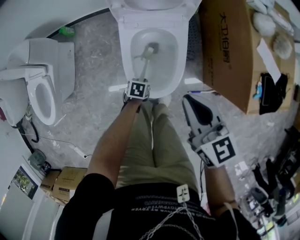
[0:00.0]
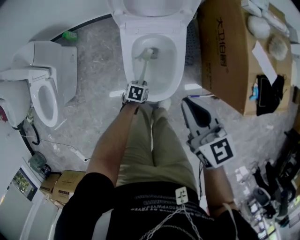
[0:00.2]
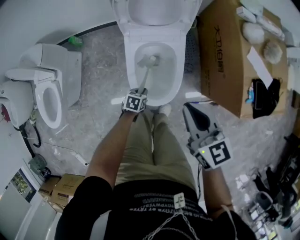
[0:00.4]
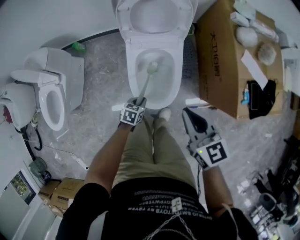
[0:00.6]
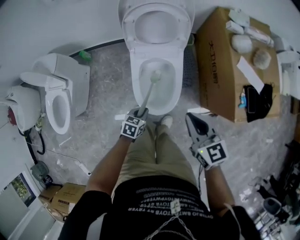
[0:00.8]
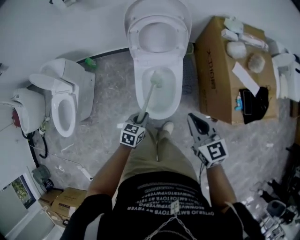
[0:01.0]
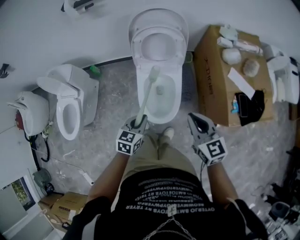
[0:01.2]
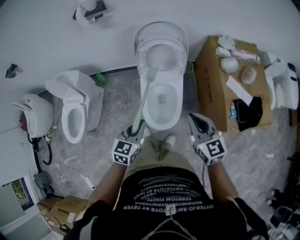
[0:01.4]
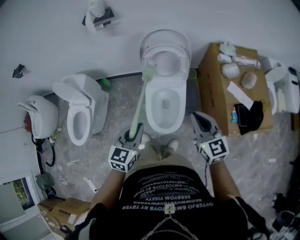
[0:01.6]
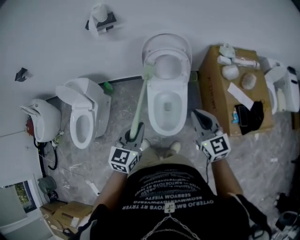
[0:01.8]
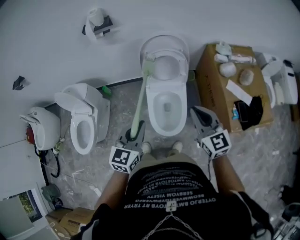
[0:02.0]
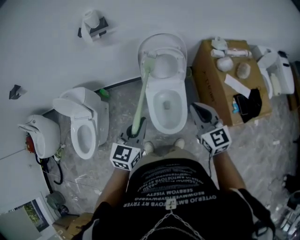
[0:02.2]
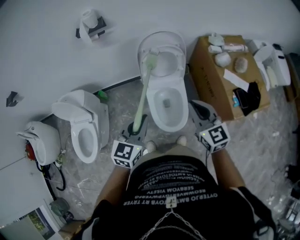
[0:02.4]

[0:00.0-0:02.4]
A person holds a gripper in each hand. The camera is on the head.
0:00.0 to 0:01.2: The left gripper moves upward, roughly 40 cm, and tilts its fingers roughly 30 degrees upward. Meanwhile the right gripper is displaced upward by some 15 cm.
0:01.2 to 0:02.4: The right gripper shifts some 15 cm upward and to the left. The left gripper moves upward and to the left, about 25 cm, and rotates about 20 degrees.

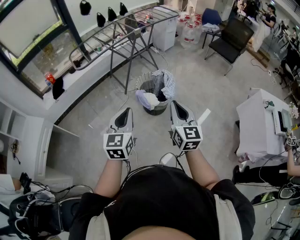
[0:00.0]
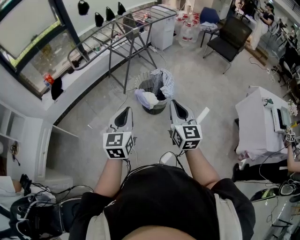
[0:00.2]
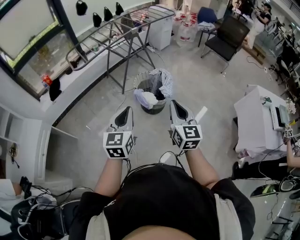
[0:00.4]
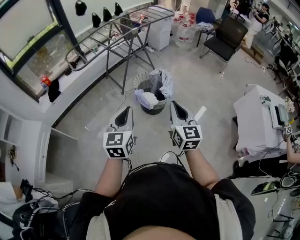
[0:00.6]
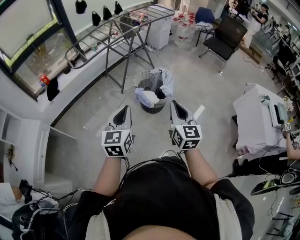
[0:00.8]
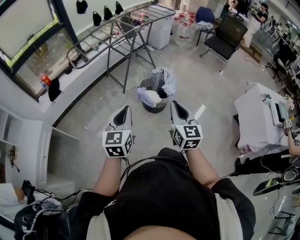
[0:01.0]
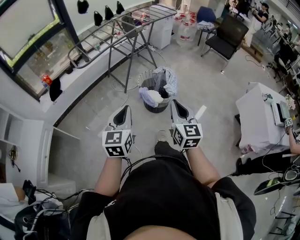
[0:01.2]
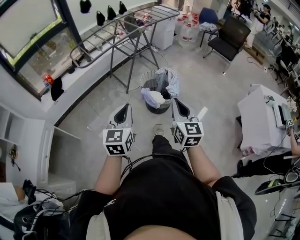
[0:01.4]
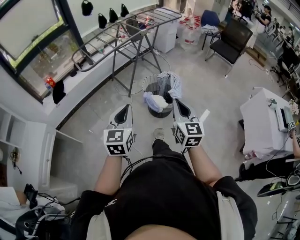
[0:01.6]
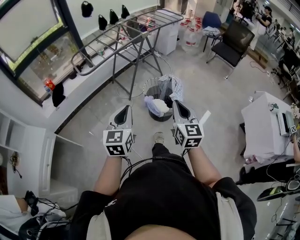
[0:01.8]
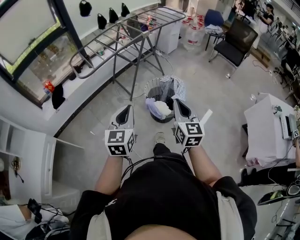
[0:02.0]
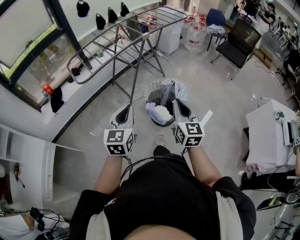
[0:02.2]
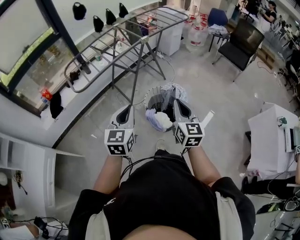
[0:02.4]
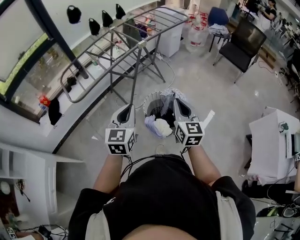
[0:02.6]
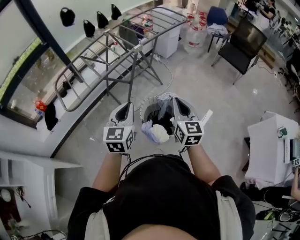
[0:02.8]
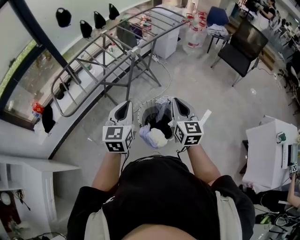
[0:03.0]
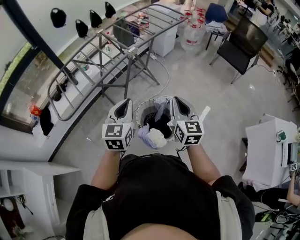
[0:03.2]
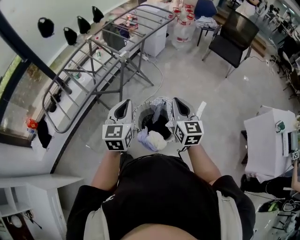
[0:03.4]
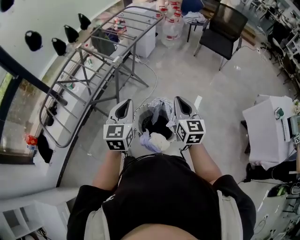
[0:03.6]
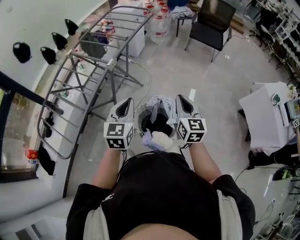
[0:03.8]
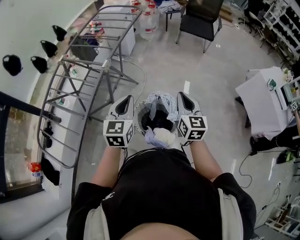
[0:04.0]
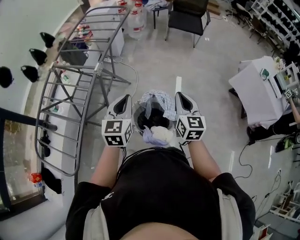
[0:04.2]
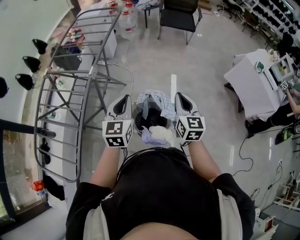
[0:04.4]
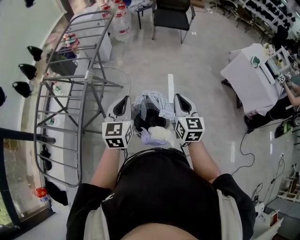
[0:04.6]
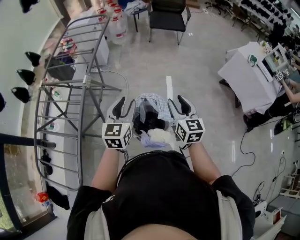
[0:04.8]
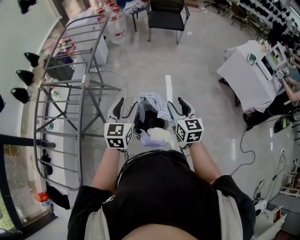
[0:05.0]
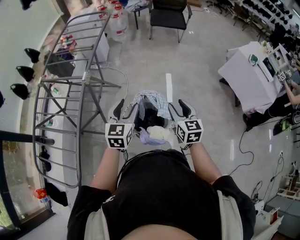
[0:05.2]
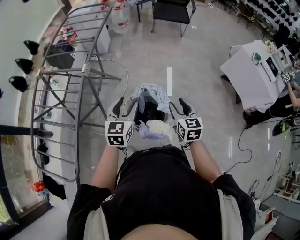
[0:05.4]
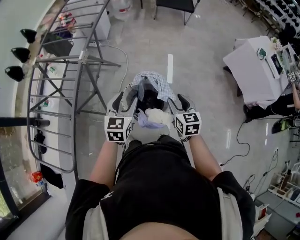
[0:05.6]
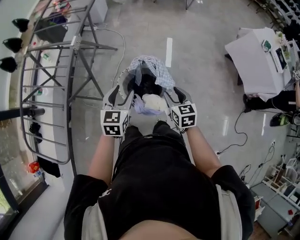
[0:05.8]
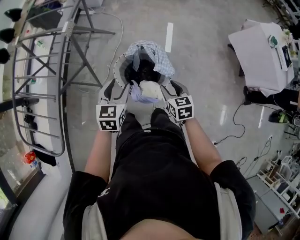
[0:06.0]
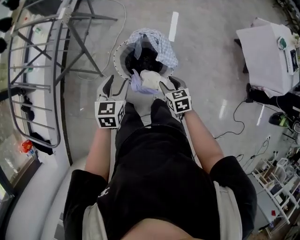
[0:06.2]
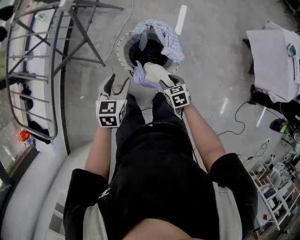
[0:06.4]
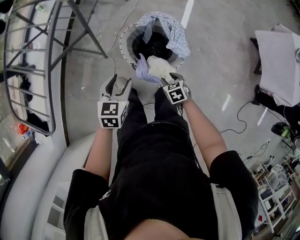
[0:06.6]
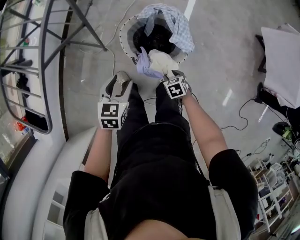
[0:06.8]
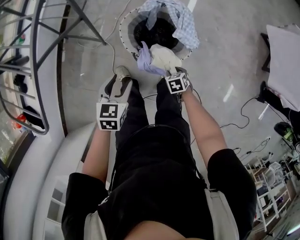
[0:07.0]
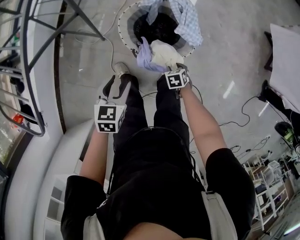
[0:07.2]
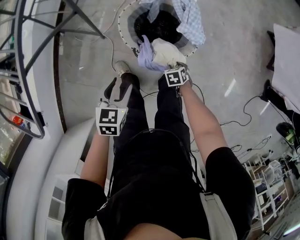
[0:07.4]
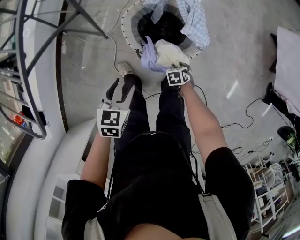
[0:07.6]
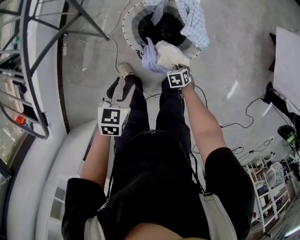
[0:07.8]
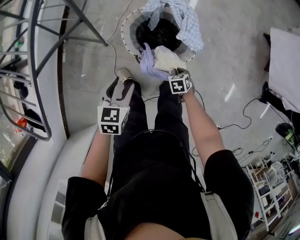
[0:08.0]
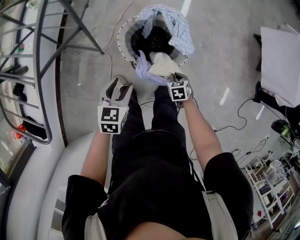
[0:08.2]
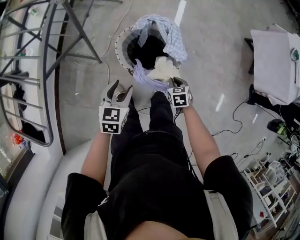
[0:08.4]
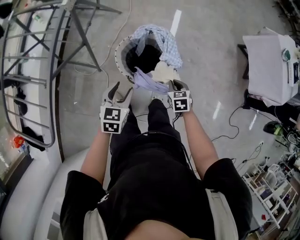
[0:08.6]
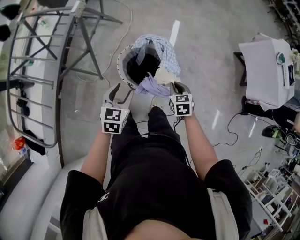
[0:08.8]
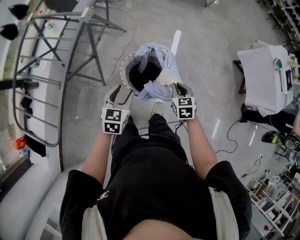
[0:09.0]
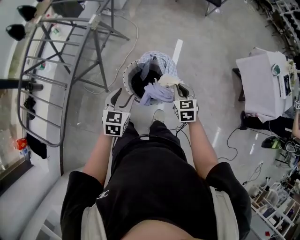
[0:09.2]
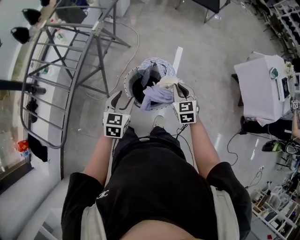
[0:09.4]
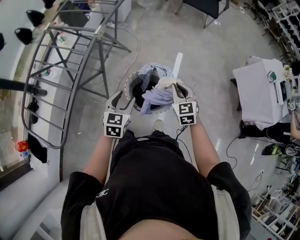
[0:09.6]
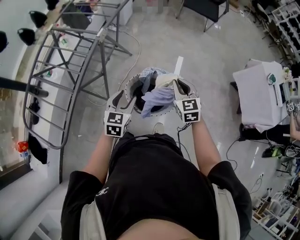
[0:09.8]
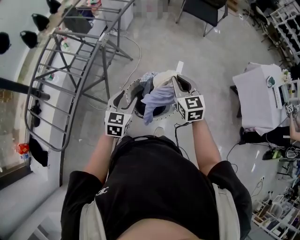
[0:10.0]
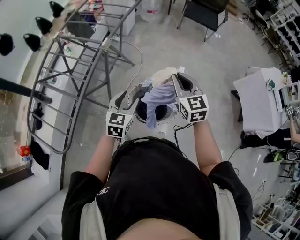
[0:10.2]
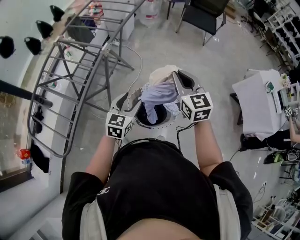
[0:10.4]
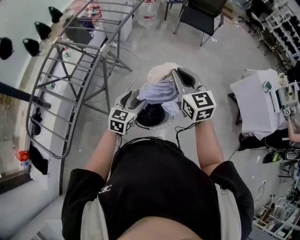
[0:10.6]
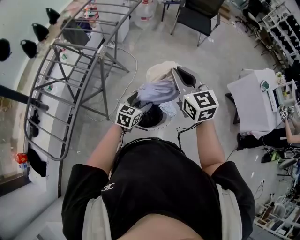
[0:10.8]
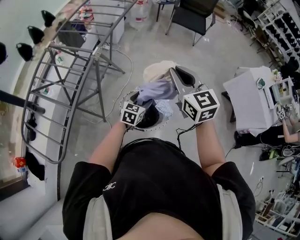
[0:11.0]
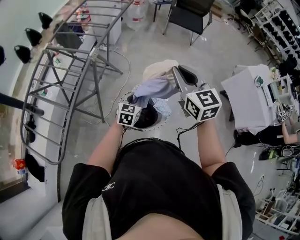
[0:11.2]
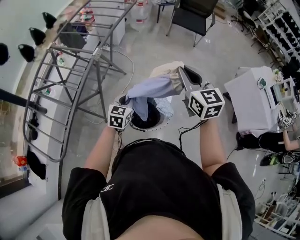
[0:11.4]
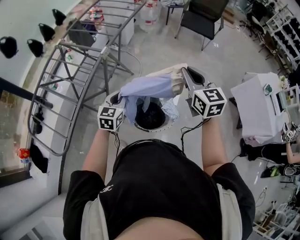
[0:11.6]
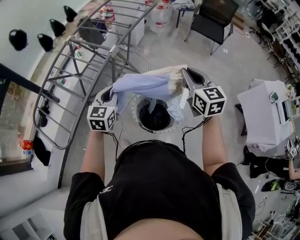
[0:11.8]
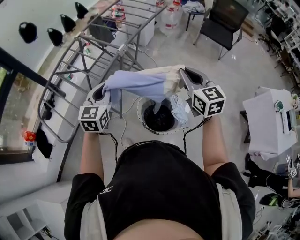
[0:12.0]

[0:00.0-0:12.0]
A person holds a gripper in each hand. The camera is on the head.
0:00.0 to 0:01.6: Both grippers travel together to the left, some 10 cm.
0:01.6 to 0:03.0: The two grippers travel together, forward, about 50 cm.
0:03.0 to 0:04.4: The right gripper moves roughly 5 cm, and turns by approximately 40 degrees, while the left gripper ends up about 15 cm from where it was, and changes its angle by approximately 40 degrees.
0:04.4 to 0:06.0: Both grippers travel together downward, approximately 20 cm. The left gripper changes its angle by approximately 20 degrees, and opens its fingers; the right gripper points its fingers roughly 30 degrees further downward, and opens its fingers.
0:06.0 to 0:07.6: The left gripper is displaced downward by approximately 20 cm, and changes its angle by about 20 degrees. The right gripper moves downward, roughly 40 cm, and points its fingers roughly 40 degrees further downward.
0:07.6 to 0:09.0: The left gripper goes some 15 cm upward. Meanwhile the right gripper shifts some 35 cm upward, tips its fingers upward by approximately 40 degrees, and closes its fingers.
0:09.0 to 0:10.4: The right gripper travels upward by about 30 cm, and points its fingers some 30 degrees further upward; the left gripper moves upward and forward, about 15 cm.
0:10.4 to 0:12.0: The left gripper heads to the left and upward, covering approximately 15 cm, rotates some 20 degrees, and closes up.

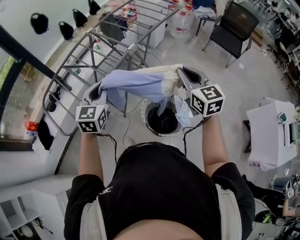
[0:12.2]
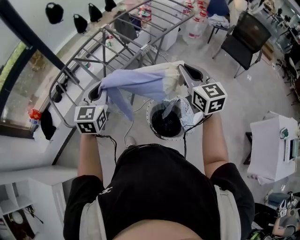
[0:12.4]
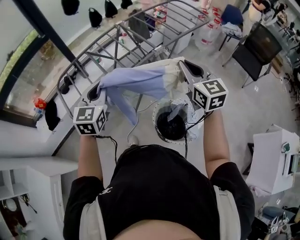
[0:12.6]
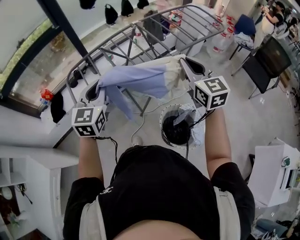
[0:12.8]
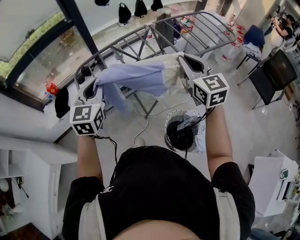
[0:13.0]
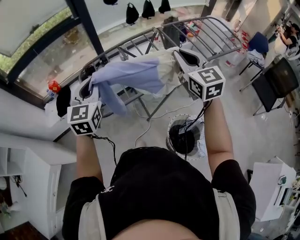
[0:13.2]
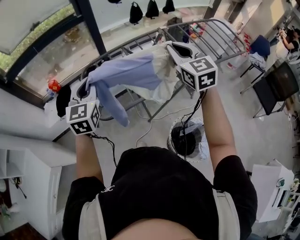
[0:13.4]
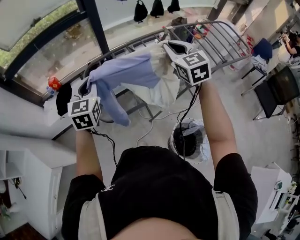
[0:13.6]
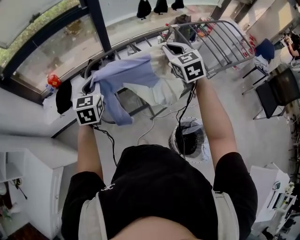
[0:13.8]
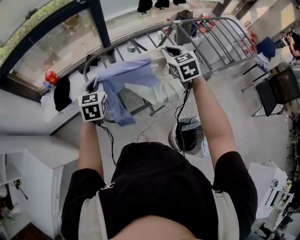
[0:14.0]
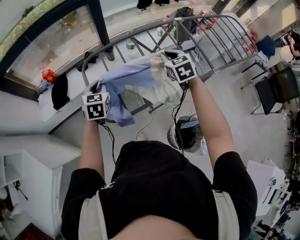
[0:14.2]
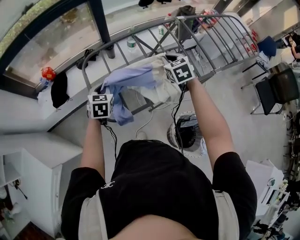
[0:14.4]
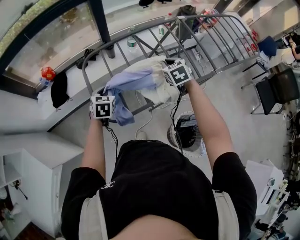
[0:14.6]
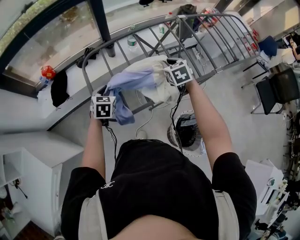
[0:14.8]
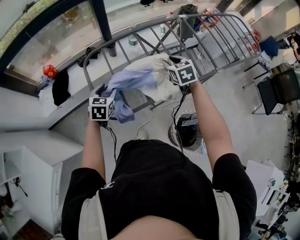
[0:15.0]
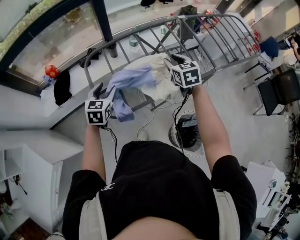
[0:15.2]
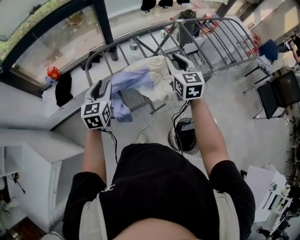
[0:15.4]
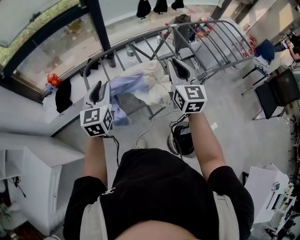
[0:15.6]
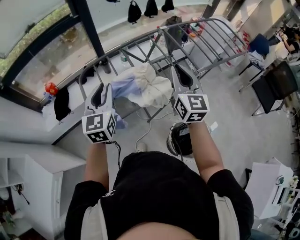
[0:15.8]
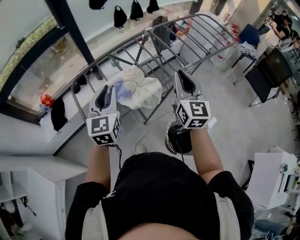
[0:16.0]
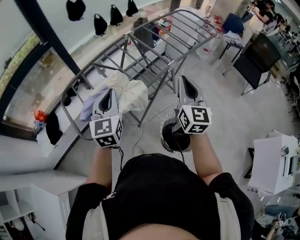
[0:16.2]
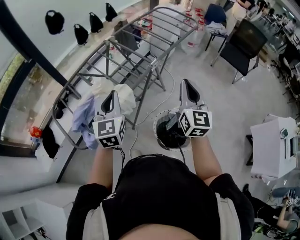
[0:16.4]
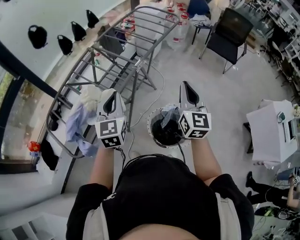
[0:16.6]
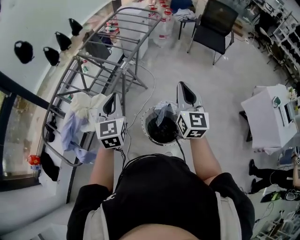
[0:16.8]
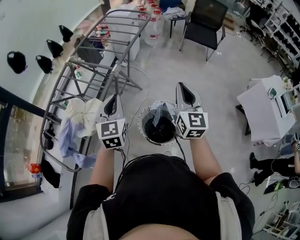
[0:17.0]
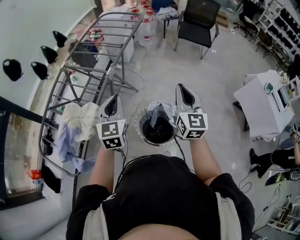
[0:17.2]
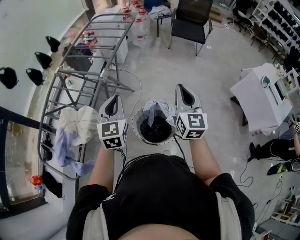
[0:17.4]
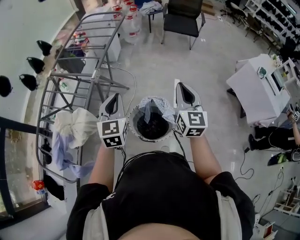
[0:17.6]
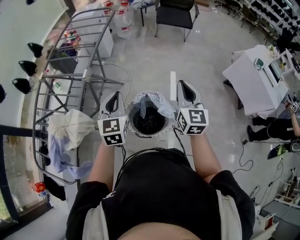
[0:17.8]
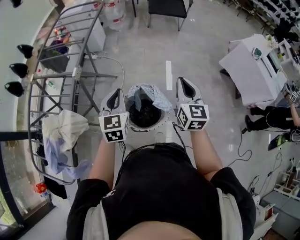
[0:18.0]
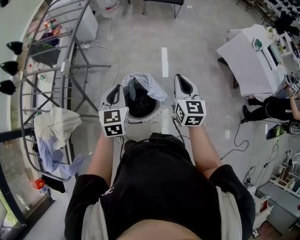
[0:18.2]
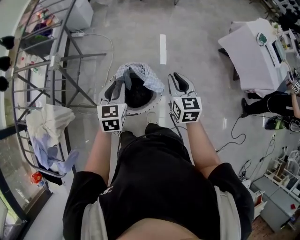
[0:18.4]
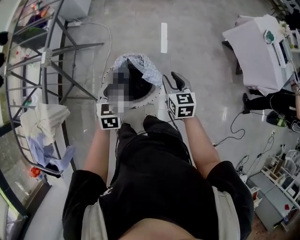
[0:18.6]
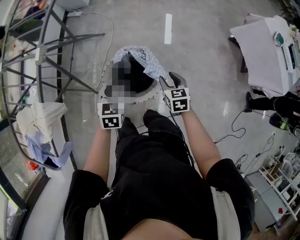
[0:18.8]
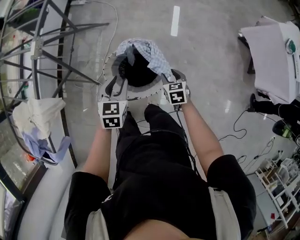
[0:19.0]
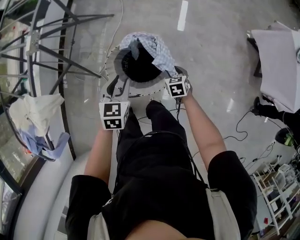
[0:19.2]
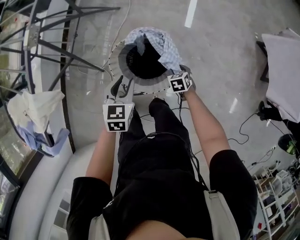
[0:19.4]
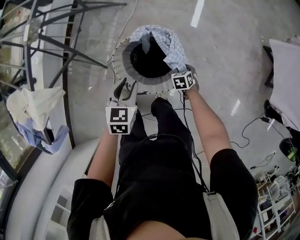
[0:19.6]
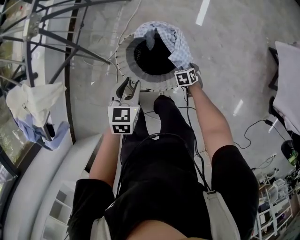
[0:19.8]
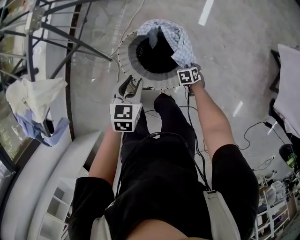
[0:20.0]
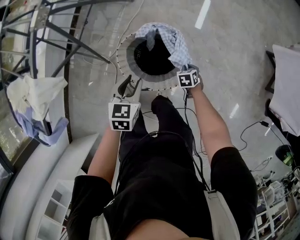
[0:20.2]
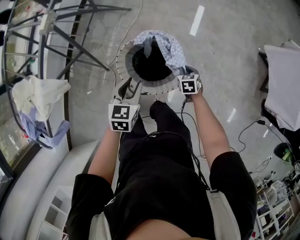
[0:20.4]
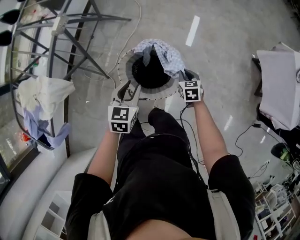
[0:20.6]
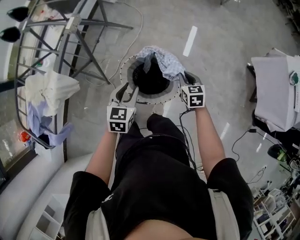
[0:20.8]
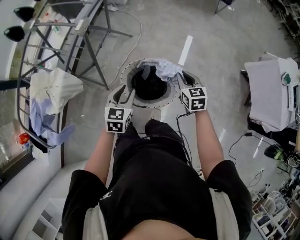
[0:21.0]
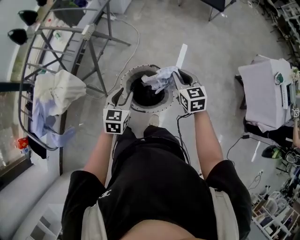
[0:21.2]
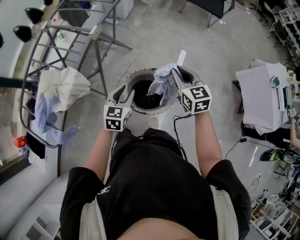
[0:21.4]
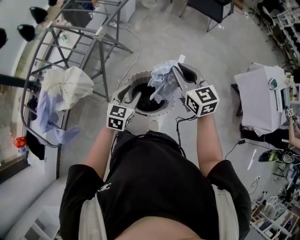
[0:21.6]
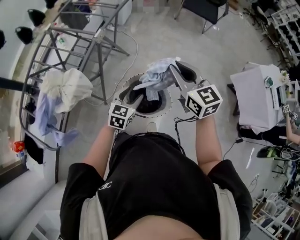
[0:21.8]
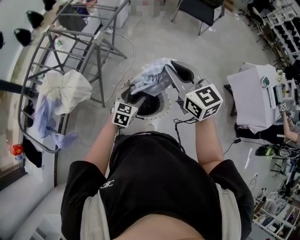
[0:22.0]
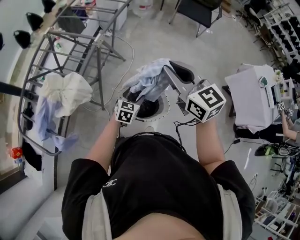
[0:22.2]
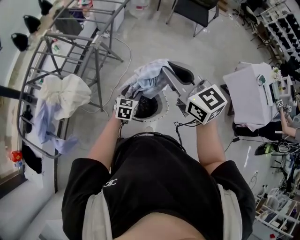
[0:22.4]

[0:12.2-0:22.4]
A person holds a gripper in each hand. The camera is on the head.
0:12.2 to 0:13.6: The right gripper changes place by some 50 cm, and changes its angle by some 30 degrees, while the left gripper moves about 40 cm, and rotates some 40 degrees.
0:13.6 to 0:15.2: The grippers both shift downward by roughly 20 cm. The right gripper swivels about 20 degrees, and opens its fingers. The left gripper opens.
0:15.2 to 0:16.6: The right gripper ends up some 50 cm from where it was, points its fingers some 30 degrees further upward, and closes, while the left gripper shifts by approximately 40 cm, turns by approximately 30 degrees, and closes up.
0:16.6 to 0:18.0: The left gripper ends up some 30 cm from where it was, and swivels roughly 30 degrees. Meanwhile the right gripper changes place by roughly 30 cm, and turns by some 30 degrees.
0:18.0 to 0:19.4: The left gripper is displaced downward by approximately 30 cm, rotates about 30 degrees, and opens up. The right gripper travels downward by roughly 60 cm, points its fingers roughly 60 degrees further downward, and opens its fingers.
0:19.4 to 0:21.0: The right gripper is displaced upward by some 30 cm, angles its fingers upward, by approximately 30 degrees, and closes; the left gripper moves upward, some 10 cm.
0:21.0 to 0:22.4: The left gripper opens its fingers. The right gripper shifts about 40 cm upward and to the left, and changes its angle by some 30 degrees.
